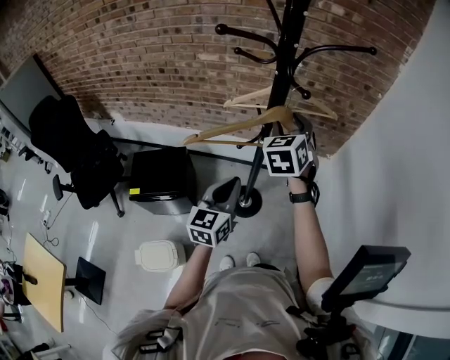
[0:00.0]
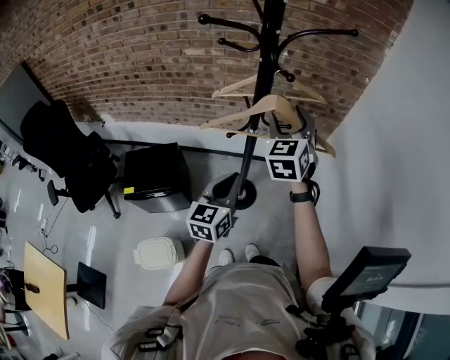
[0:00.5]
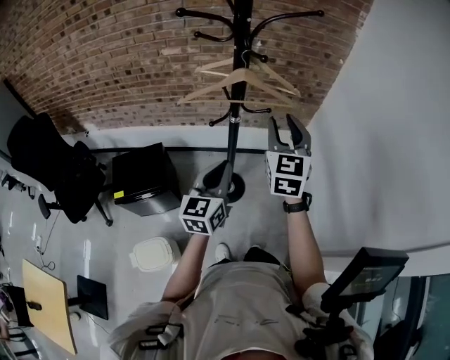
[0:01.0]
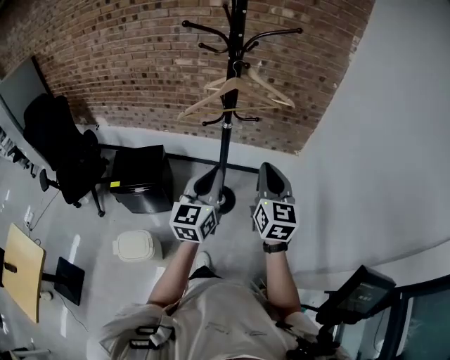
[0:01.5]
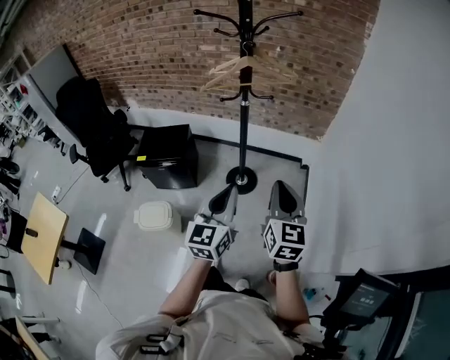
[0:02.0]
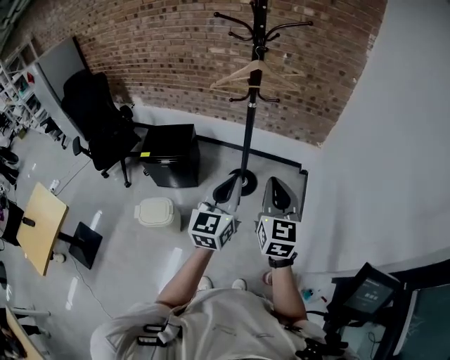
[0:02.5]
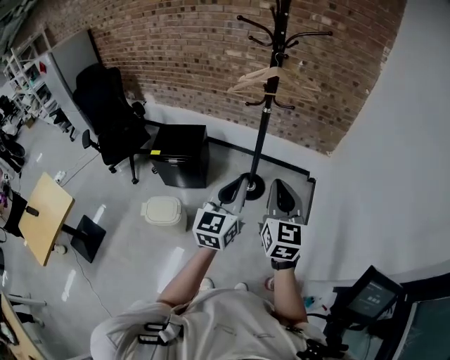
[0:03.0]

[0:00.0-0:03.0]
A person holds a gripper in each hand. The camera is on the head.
0.0 to 1.5 s: The right gripper is displaced backward and to the right by about 30 cm, swivels roughly 40 degrees, and closes up, while the left gripper moves backward, to the right and upward, roughly 20 cm.
1.5 to 3.0 s: The grippers both shift backward by roughly 20 cm.

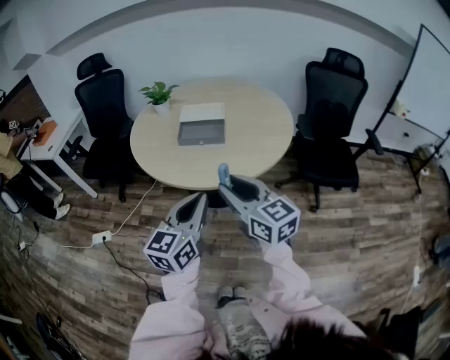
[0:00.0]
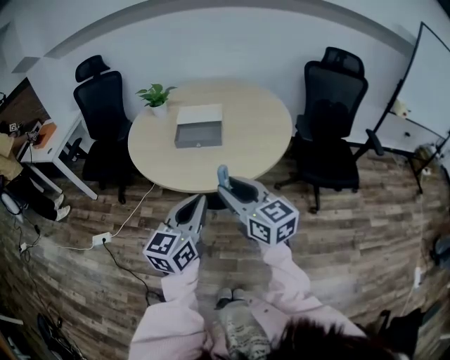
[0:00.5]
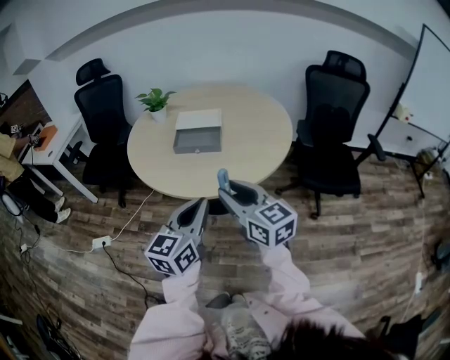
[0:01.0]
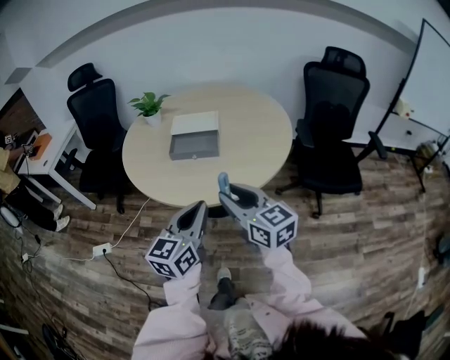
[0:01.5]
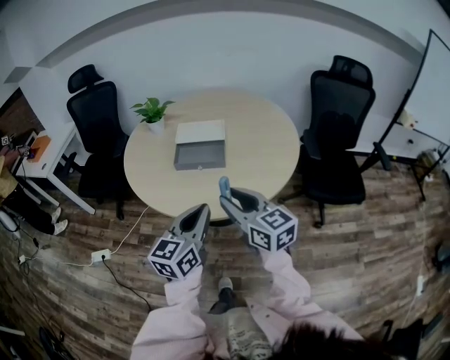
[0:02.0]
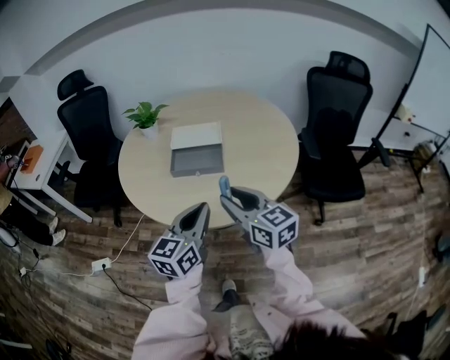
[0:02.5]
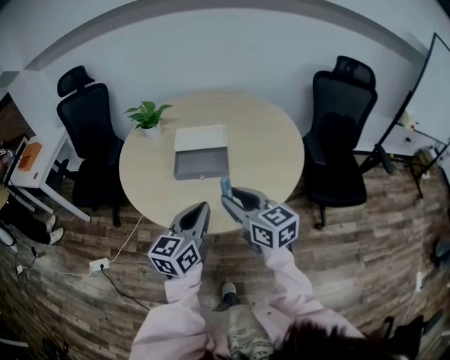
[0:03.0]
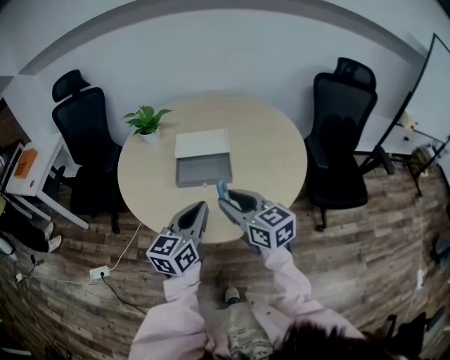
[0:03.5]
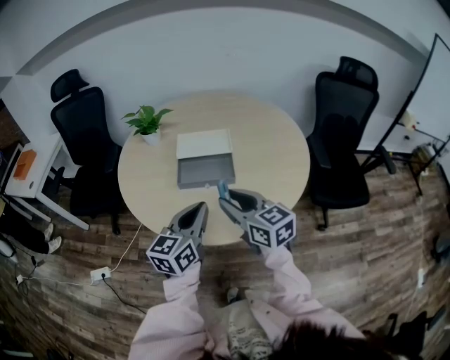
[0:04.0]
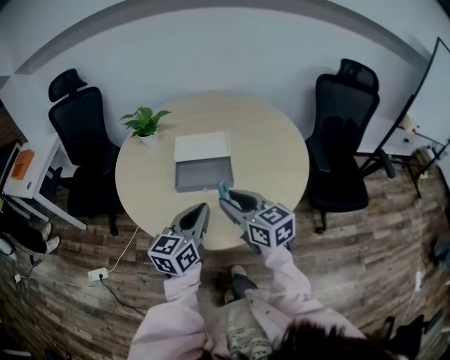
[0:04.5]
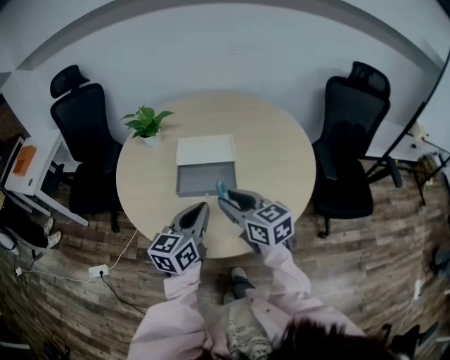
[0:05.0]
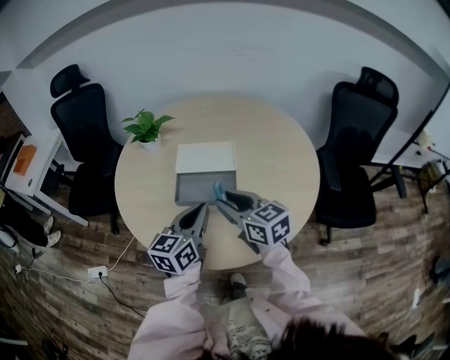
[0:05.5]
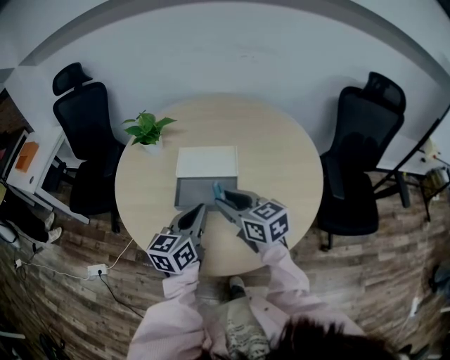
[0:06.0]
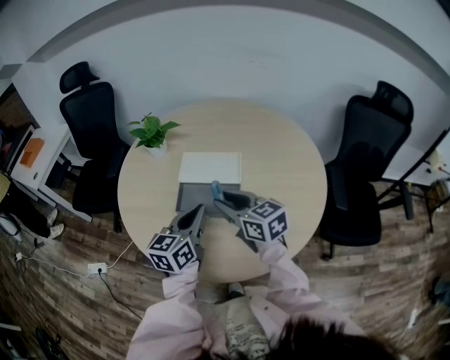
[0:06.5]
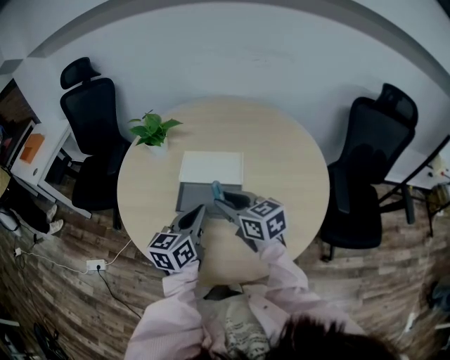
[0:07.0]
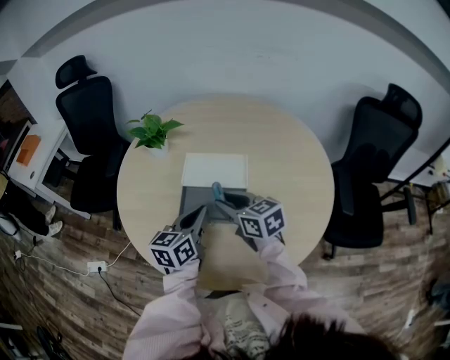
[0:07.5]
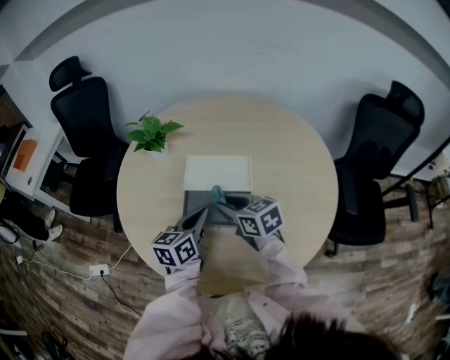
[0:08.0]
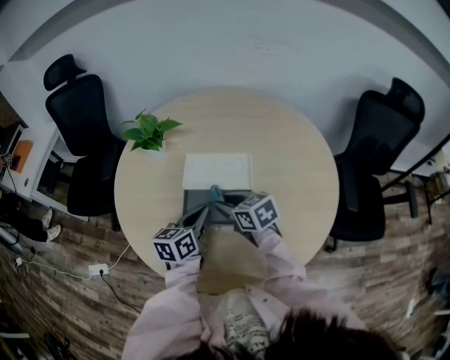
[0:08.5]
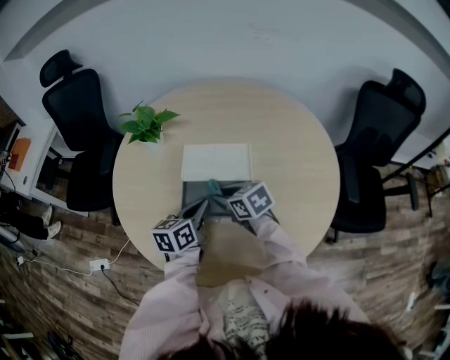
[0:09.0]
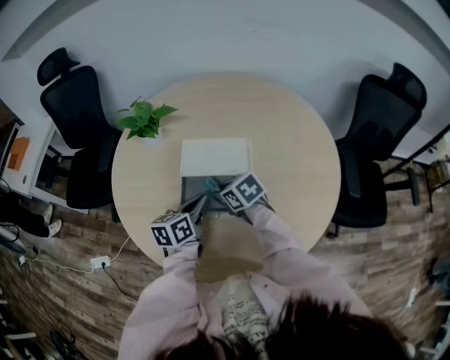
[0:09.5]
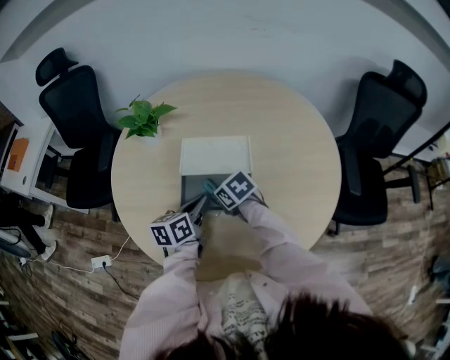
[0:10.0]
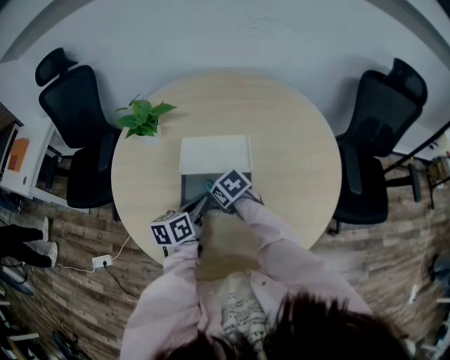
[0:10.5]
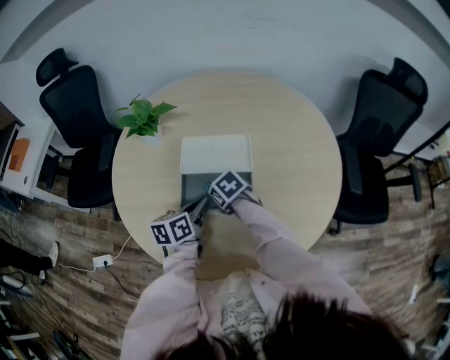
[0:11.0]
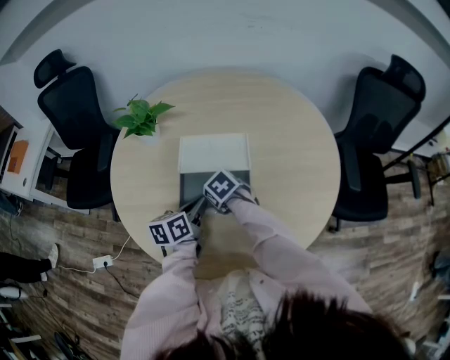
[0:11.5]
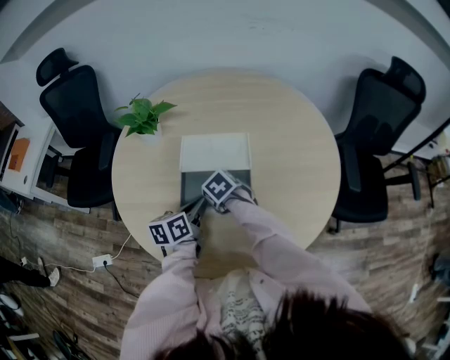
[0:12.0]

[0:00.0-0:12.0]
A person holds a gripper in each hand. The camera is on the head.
0.0 to 2.0 s: Both grippers move forward, approximately 10 cm.
2.0 to 4.0 s: The grippers both shift forward by approximately 15 cm.
4.0 to 6.0 s: The grippers both shift forward by roughly 15 cm.
6.0 to 8.0 s: Both grippers move forward and downward, roughly 10 cm.
8.0 to 10.0 s: The left gripper goes approximately 5 cm downward. The right gripper shifts approximately 10 cm downward, and changes its angle by about 30 degrees.
10.0 to 12.0 s: The grippers stay close to where they were, moving slightly.

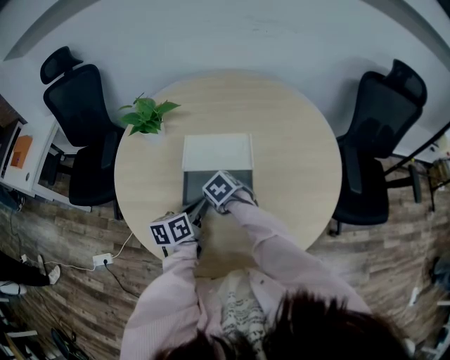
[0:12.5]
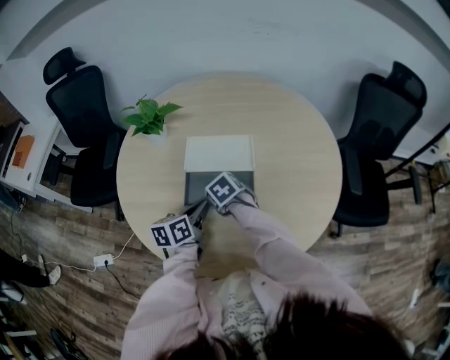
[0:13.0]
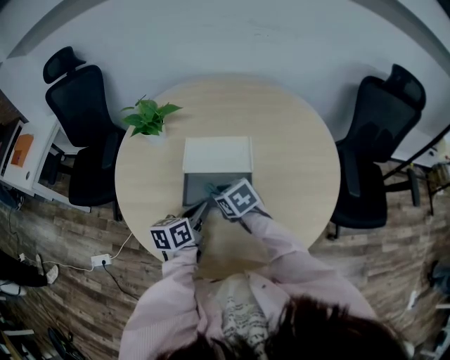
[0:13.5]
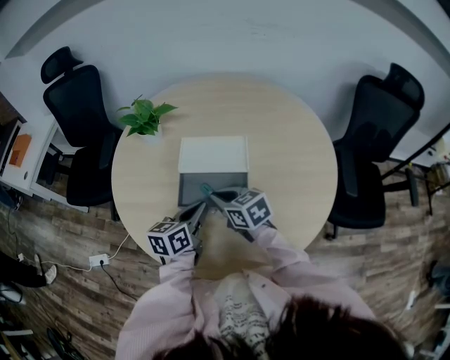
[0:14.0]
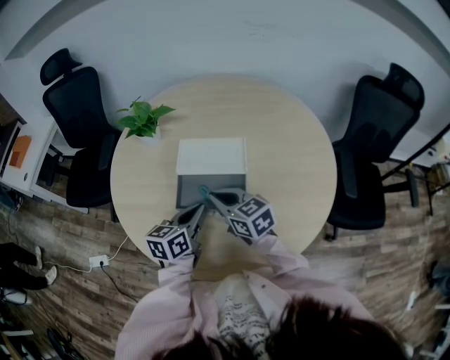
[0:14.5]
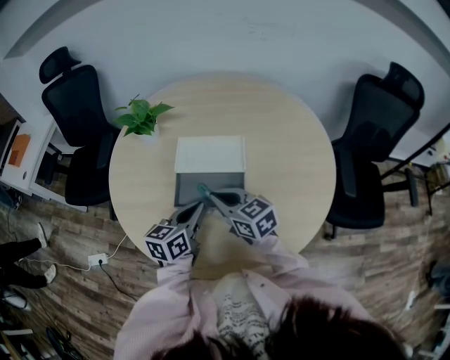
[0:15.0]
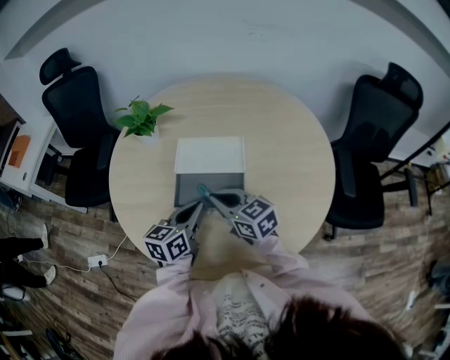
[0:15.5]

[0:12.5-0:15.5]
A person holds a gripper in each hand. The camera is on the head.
12.5 to 14.0 s: The right gripper goes about 10 cm upward, tilts its fingers approximately 40 degrees upward, and closes up.
14.0 to 15.5 s: The grippers stay close to where they were, moving slightly.

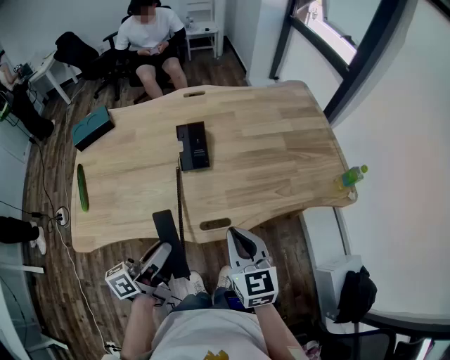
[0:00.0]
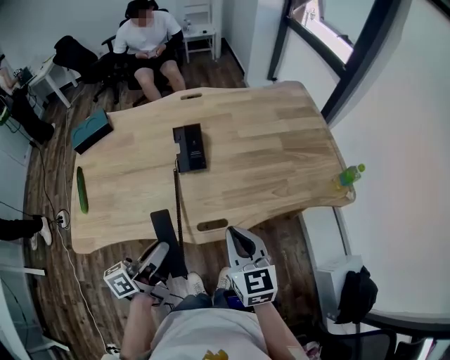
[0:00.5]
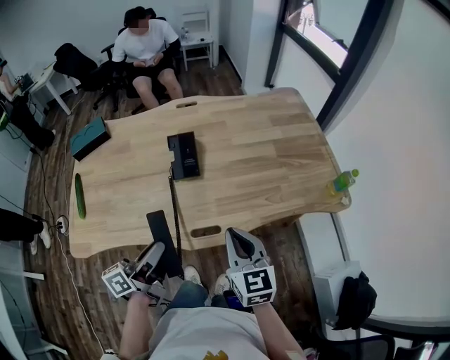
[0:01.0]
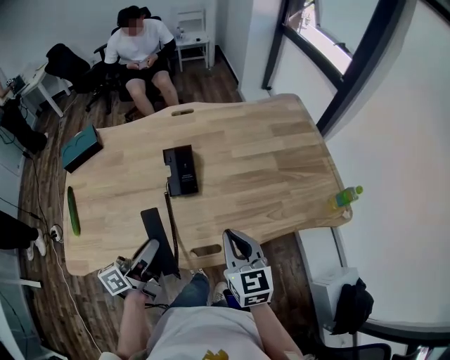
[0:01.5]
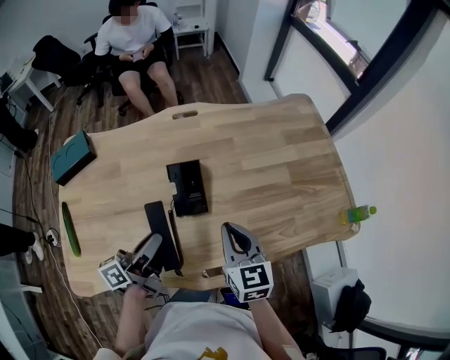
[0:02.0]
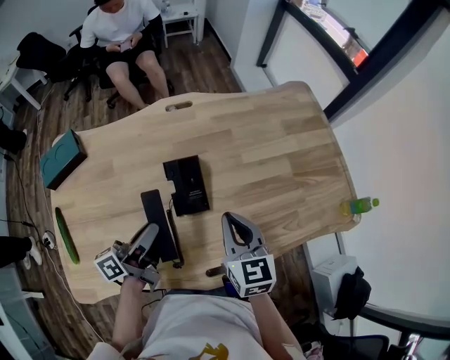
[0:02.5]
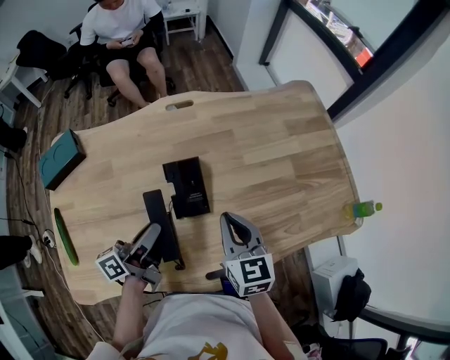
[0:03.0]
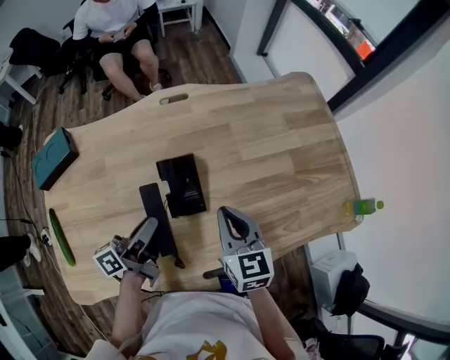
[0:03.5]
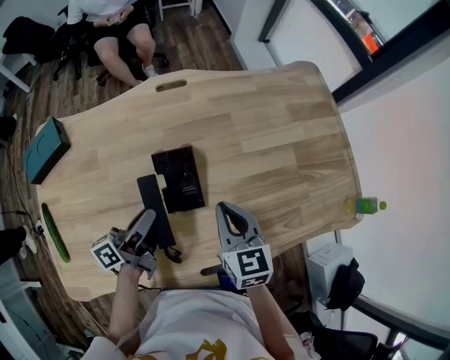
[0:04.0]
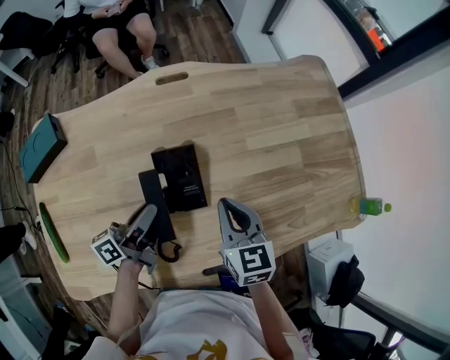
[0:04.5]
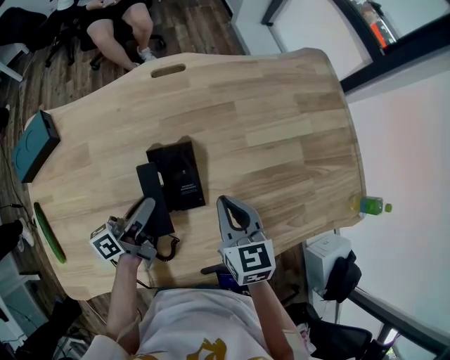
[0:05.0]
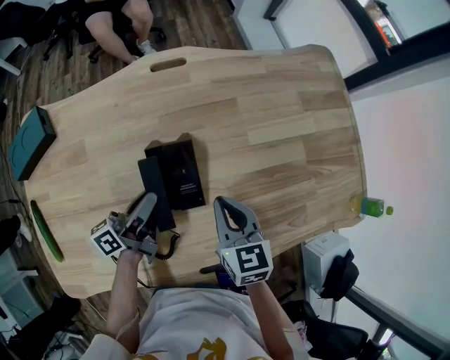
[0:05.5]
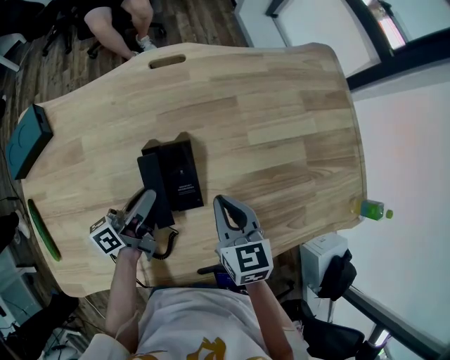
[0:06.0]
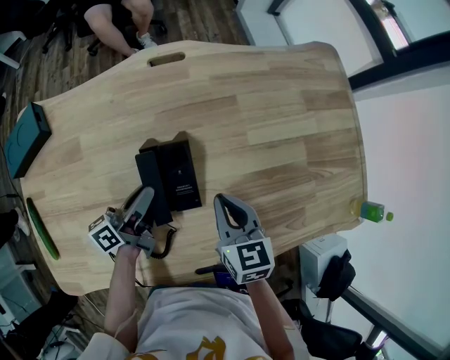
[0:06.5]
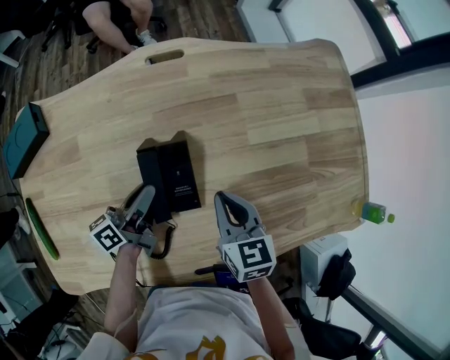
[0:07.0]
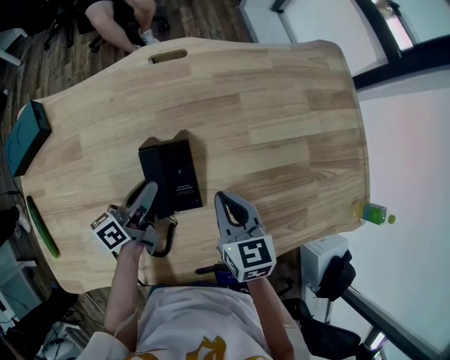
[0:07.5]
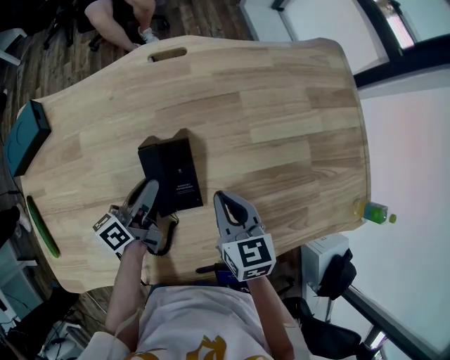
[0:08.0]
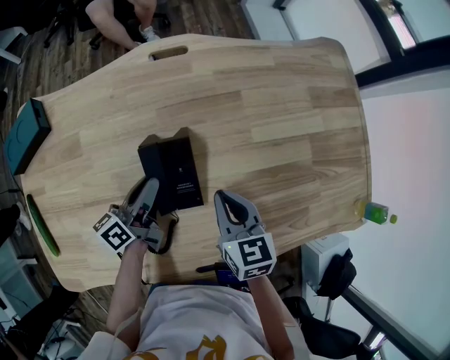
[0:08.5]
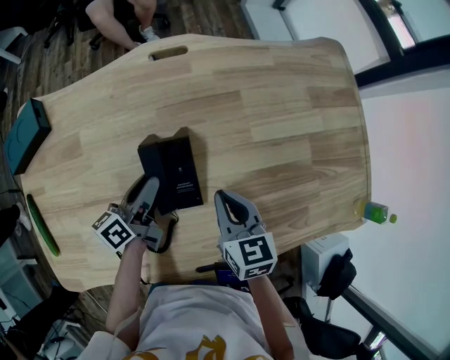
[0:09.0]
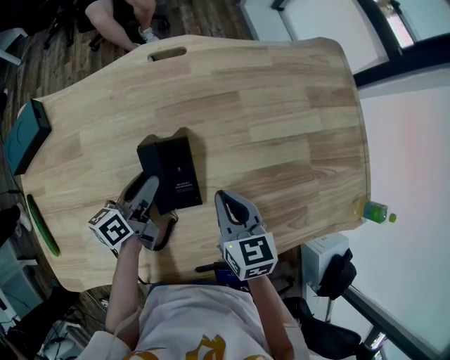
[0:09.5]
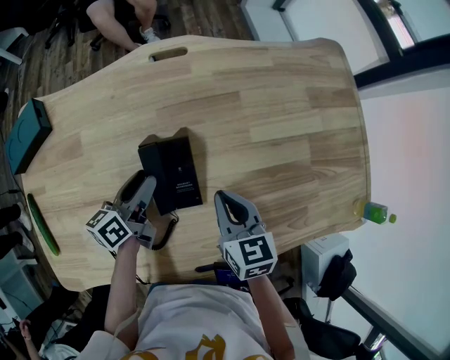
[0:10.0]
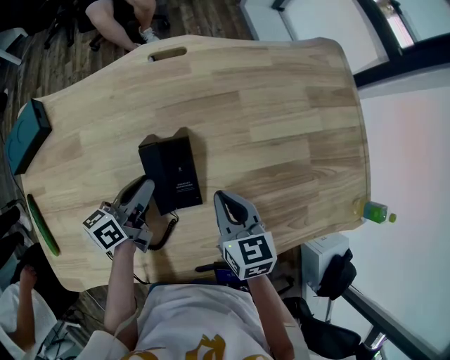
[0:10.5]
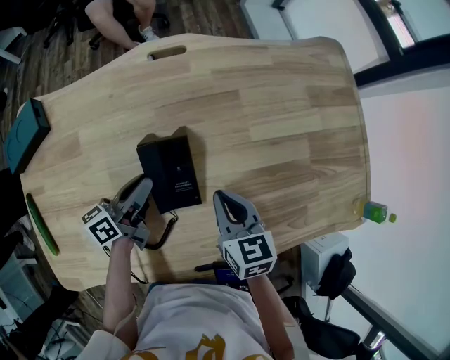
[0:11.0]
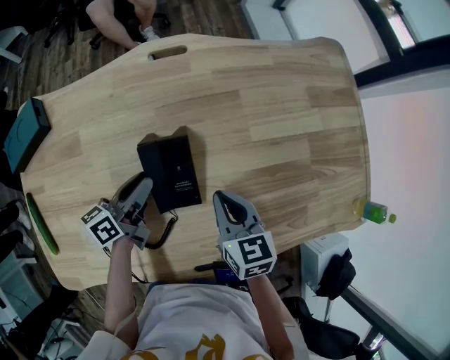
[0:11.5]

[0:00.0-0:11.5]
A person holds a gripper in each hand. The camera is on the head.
0.0 to 2.0 s: Both grippers travel together forward, approximately 20 cm.
2.0 to 4.0 s: Both grippers travel together forward and downward, some 10 cm.
4.0 to 6.0 s: Both grippers travel together downward, roughly 5 cm.
6.0 to 7.5 s: The grippers stay close to where they were, moving slightly.
7.5 to 9.5 s: The left gripper opens.
9.5 to 11.5 s: The grippers make only small movements.
